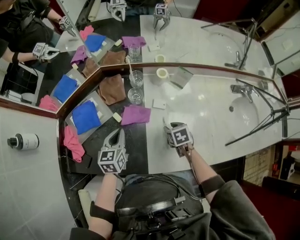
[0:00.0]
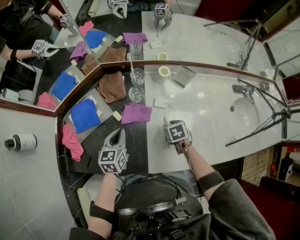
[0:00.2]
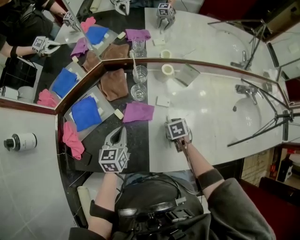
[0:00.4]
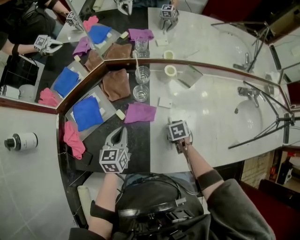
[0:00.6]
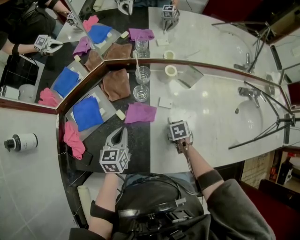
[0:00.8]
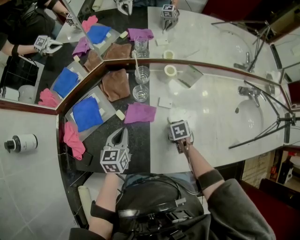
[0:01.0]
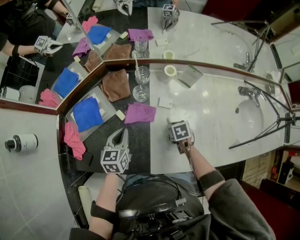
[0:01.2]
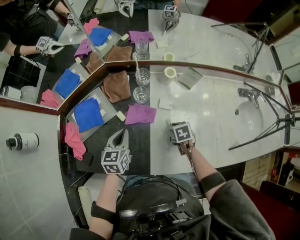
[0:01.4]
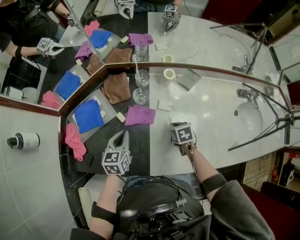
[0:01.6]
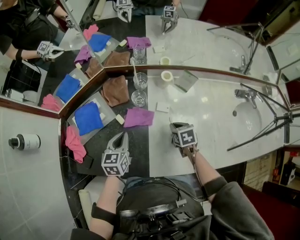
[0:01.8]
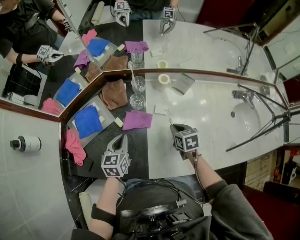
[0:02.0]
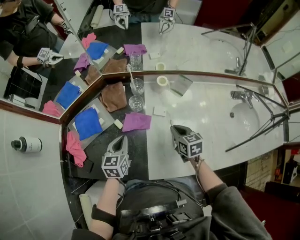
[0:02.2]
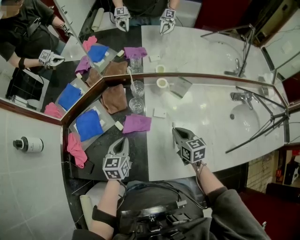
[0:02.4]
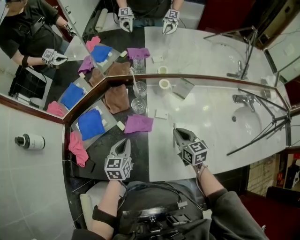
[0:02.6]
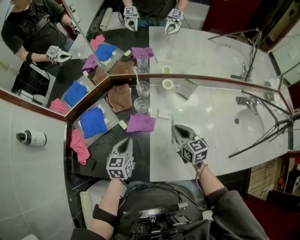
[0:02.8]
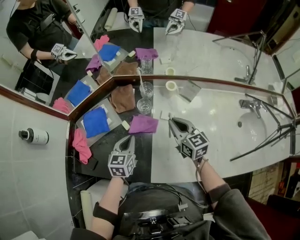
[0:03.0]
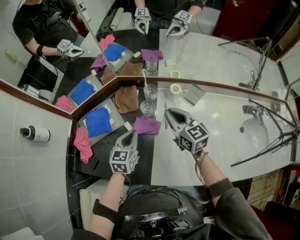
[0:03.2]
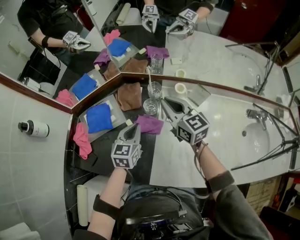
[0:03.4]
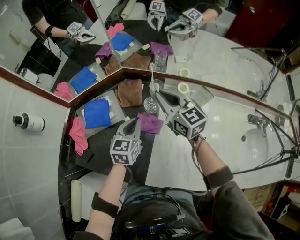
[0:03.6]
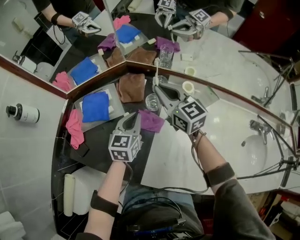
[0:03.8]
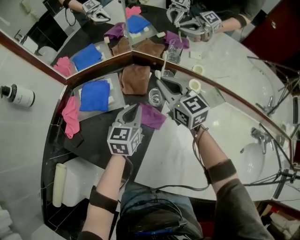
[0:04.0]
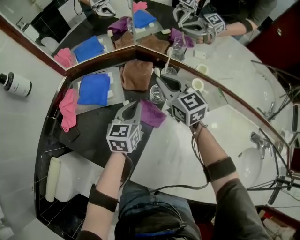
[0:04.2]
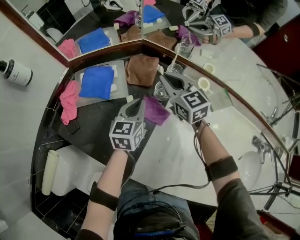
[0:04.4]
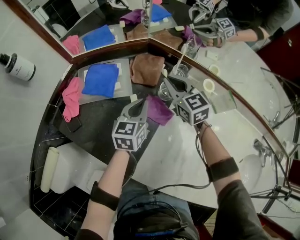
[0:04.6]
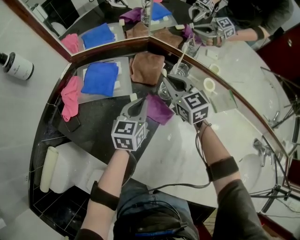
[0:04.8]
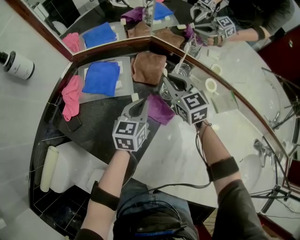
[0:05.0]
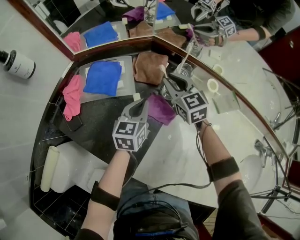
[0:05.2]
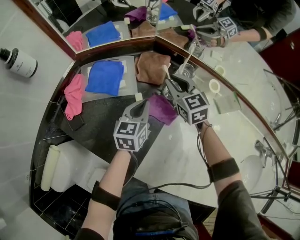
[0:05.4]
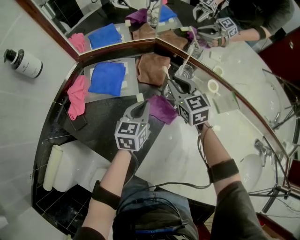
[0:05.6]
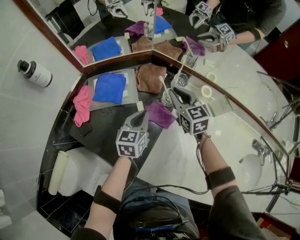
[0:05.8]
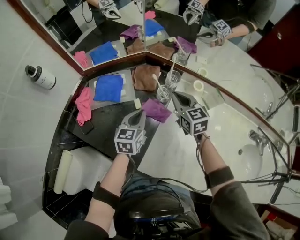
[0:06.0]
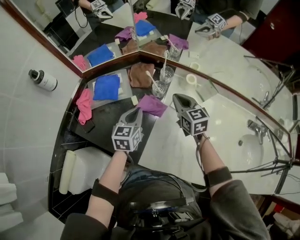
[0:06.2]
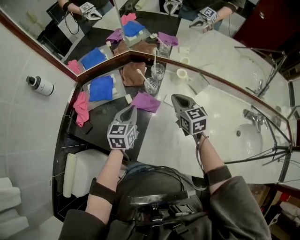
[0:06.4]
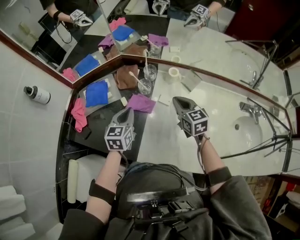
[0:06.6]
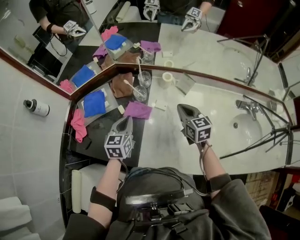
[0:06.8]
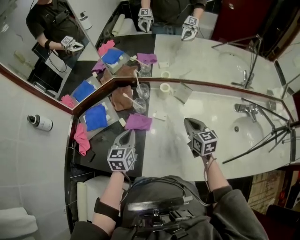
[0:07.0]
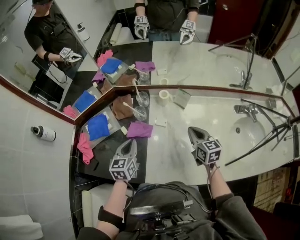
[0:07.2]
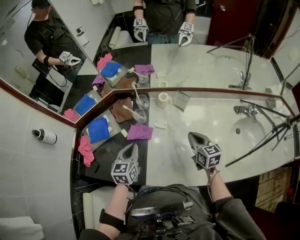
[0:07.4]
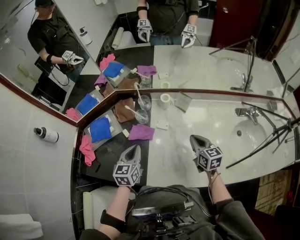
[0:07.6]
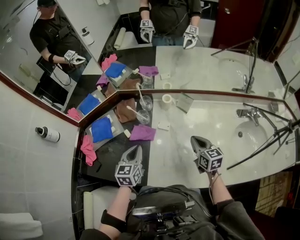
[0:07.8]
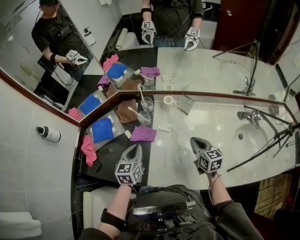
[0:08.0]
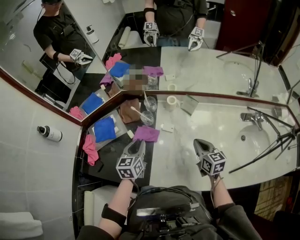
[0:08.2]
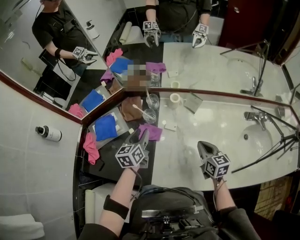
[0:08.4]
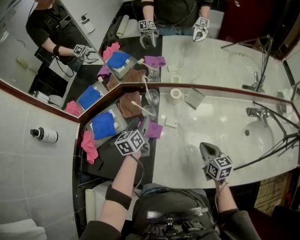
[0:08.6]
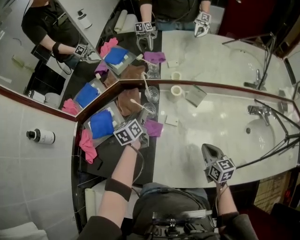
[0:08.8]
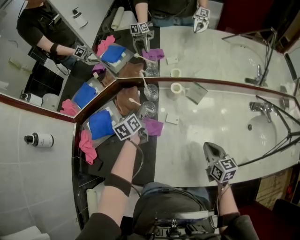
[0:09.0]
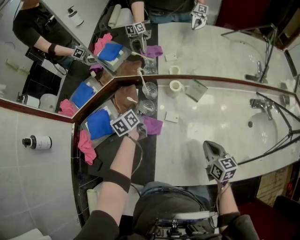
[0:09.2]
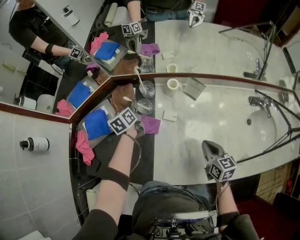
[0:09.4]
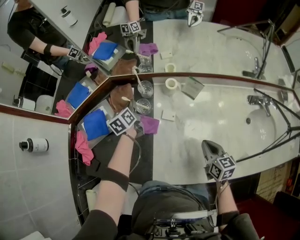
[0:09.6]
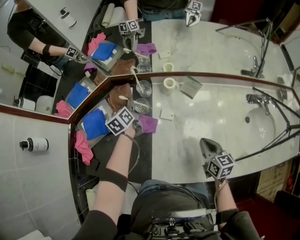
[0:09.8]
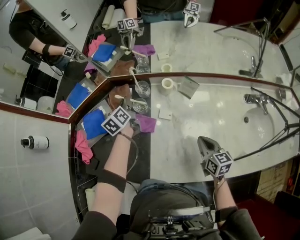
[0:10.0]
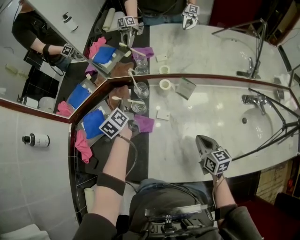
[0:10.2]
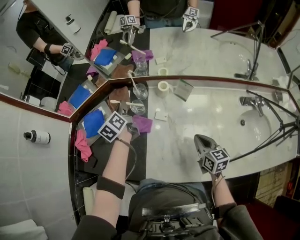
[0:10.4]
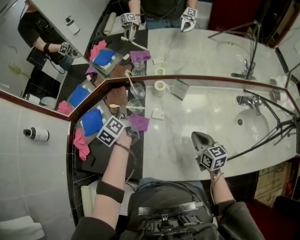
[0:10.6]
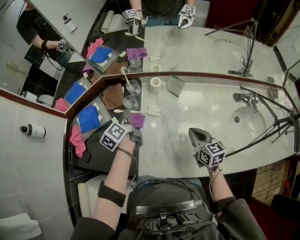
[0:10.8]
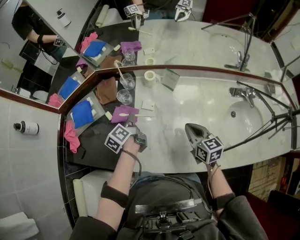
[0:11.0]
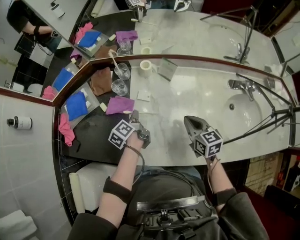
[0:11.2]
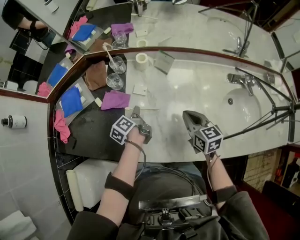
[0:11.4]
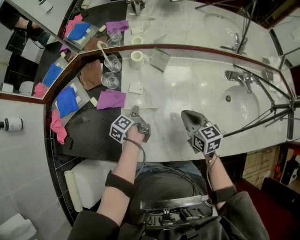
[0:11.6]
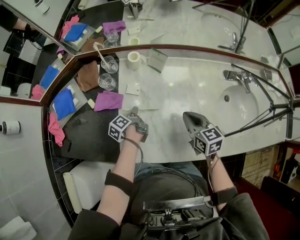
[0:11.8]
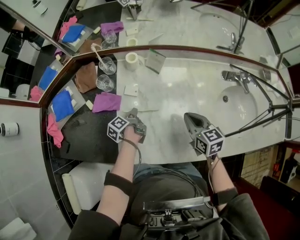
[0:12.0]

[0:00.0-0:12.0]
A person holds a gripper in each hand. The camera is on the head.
0:00.0 to 0:01.6: The right gripper closes up.
0:01.6 to 0:03.0: The right gripper travels upward by some 20 cm, and tips its fingers upward by about 50 degrees.
0:03.0 to 0:04.4: The right gripper shifts approximately 20 cm forward and to the left, and rotates approximately 30 degrees; the left gripper goes approximately 10 cm forward, and changes its angle by approximately 20 degrees.
0:04.4 to 0:06.0: The grippers both shift backward by some 5 cm.
0:06.0 to 0:07.6: The left gripper moves backward, upward and to the right, roughly 10 cm, while the right gripper goes approximately 30 cm to the right and backward, and changes its angle by approximately 30 degrees.
0:07.6 to 0:09.0: The left gripper is displaced forward and downward by approximately 25 cm, swivels approximately 30 degrees, and opens.
0:09.0 to 0:10.4: The left gripper heads upward, covering some 10 cm, and closes.
0:10.4 to 0:12.0: The left gripper goes about 30 cm downward, backward and to the right, and twists about 40 degrees counterclockwise, seen from behind. The right gripper heads to the right, covering roughly 5 cm.

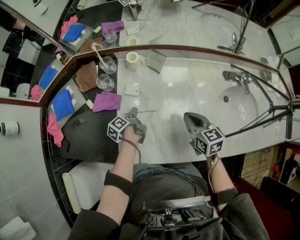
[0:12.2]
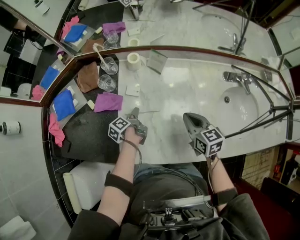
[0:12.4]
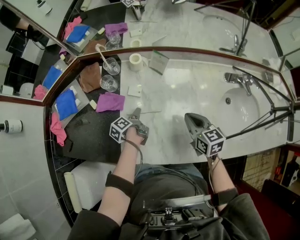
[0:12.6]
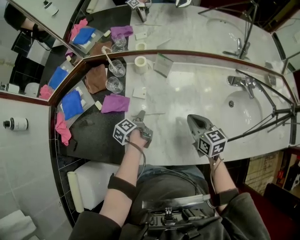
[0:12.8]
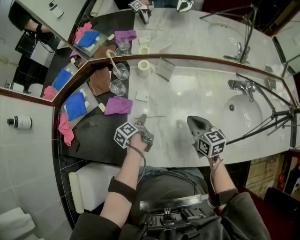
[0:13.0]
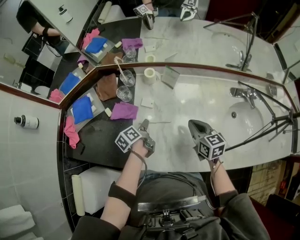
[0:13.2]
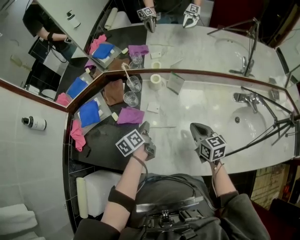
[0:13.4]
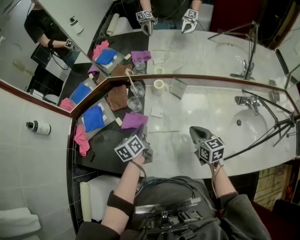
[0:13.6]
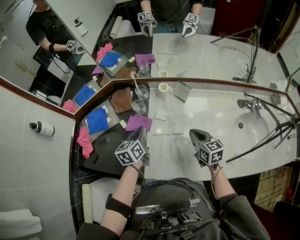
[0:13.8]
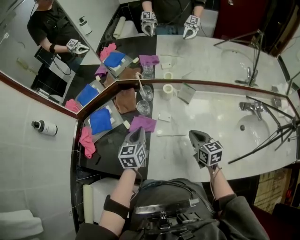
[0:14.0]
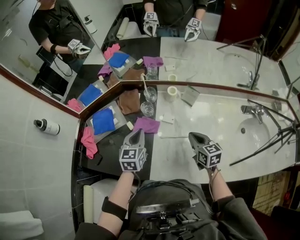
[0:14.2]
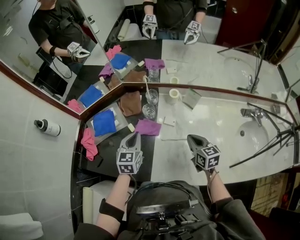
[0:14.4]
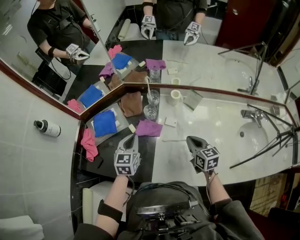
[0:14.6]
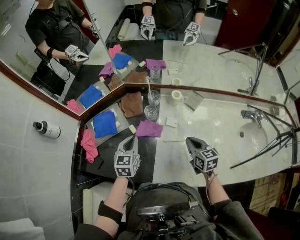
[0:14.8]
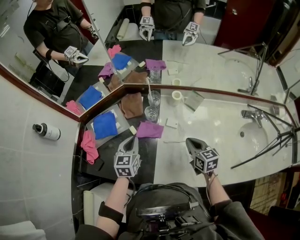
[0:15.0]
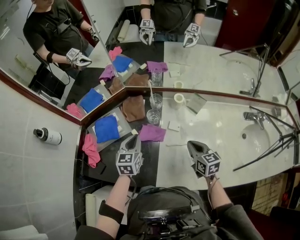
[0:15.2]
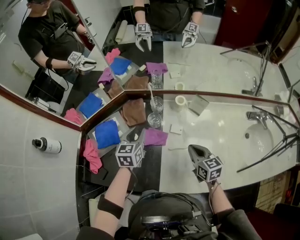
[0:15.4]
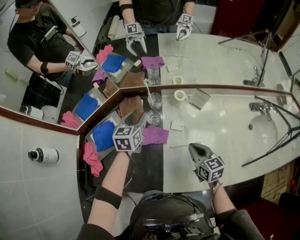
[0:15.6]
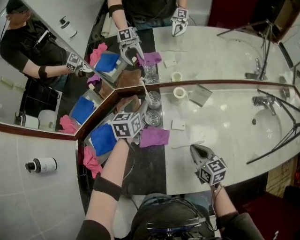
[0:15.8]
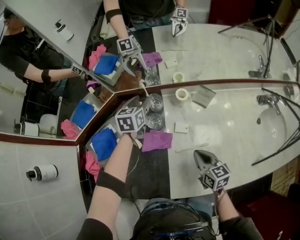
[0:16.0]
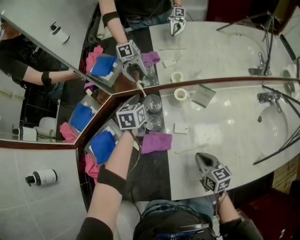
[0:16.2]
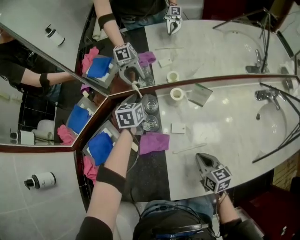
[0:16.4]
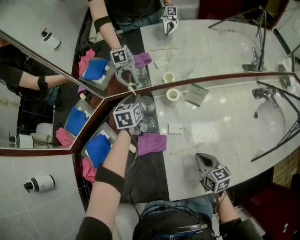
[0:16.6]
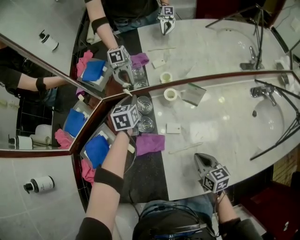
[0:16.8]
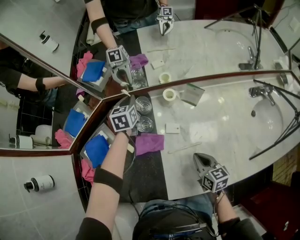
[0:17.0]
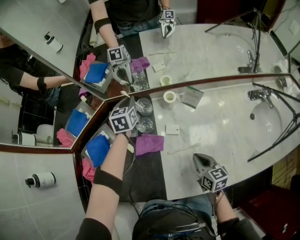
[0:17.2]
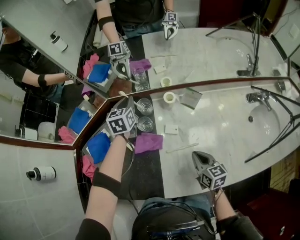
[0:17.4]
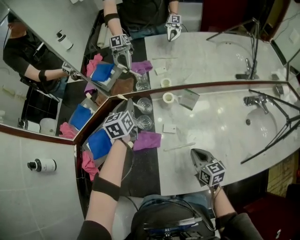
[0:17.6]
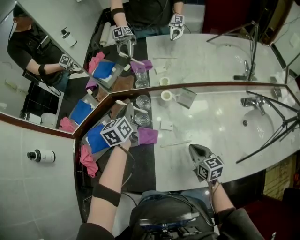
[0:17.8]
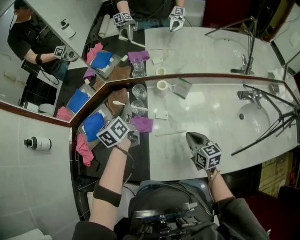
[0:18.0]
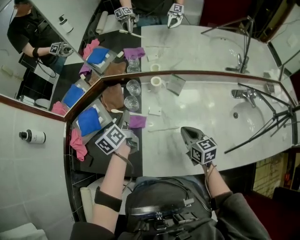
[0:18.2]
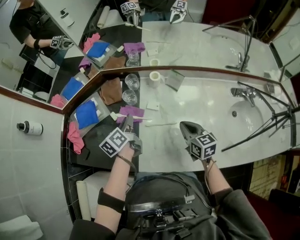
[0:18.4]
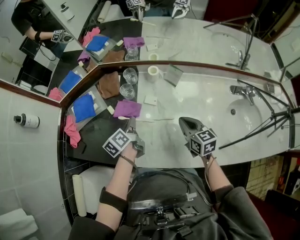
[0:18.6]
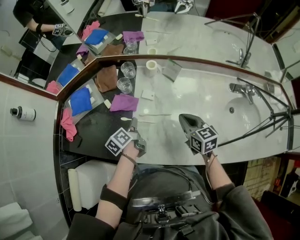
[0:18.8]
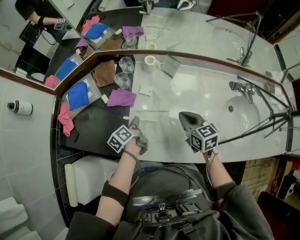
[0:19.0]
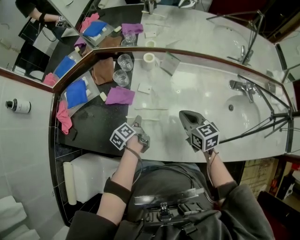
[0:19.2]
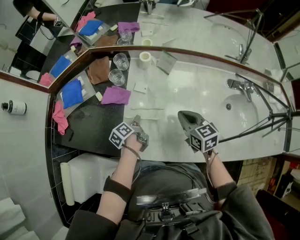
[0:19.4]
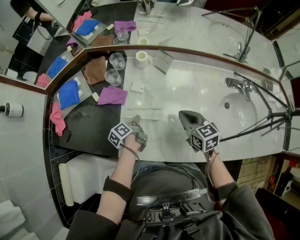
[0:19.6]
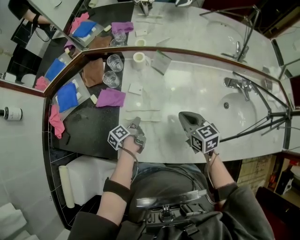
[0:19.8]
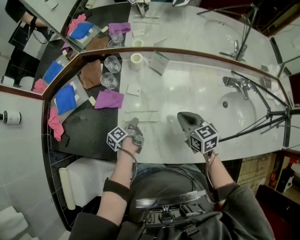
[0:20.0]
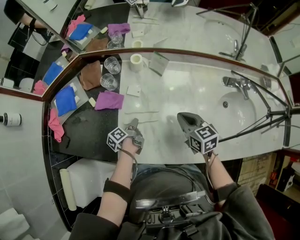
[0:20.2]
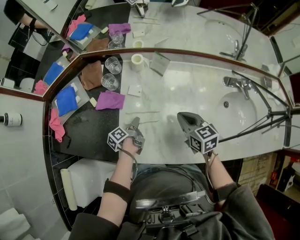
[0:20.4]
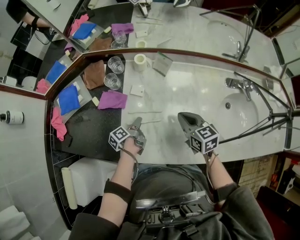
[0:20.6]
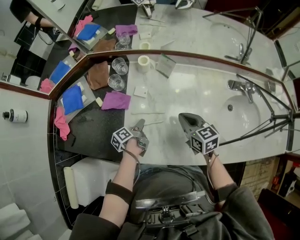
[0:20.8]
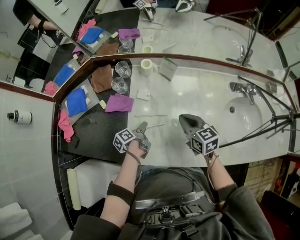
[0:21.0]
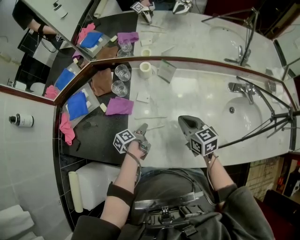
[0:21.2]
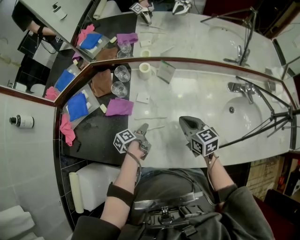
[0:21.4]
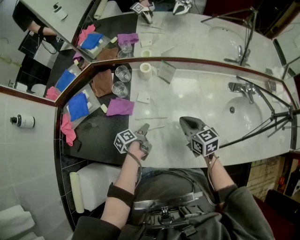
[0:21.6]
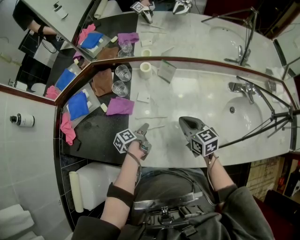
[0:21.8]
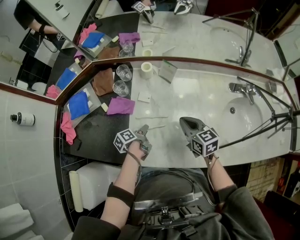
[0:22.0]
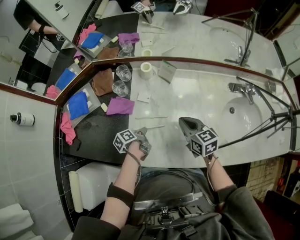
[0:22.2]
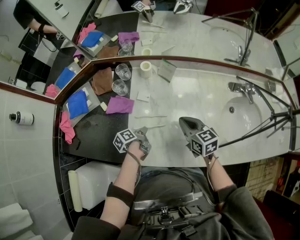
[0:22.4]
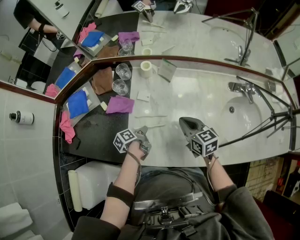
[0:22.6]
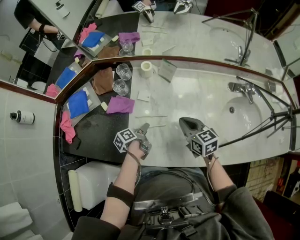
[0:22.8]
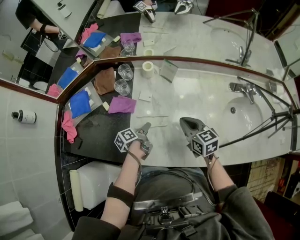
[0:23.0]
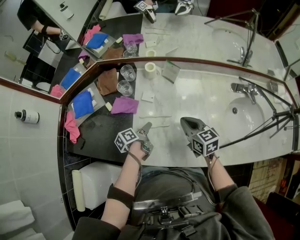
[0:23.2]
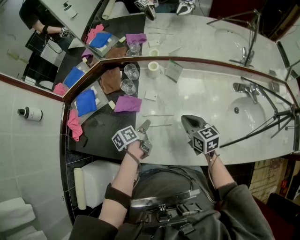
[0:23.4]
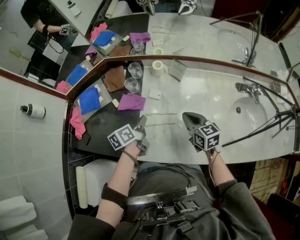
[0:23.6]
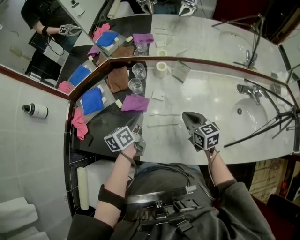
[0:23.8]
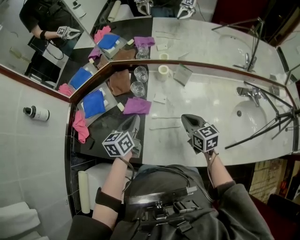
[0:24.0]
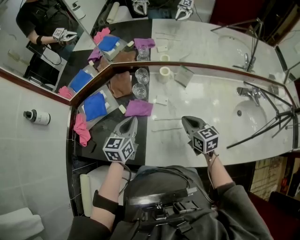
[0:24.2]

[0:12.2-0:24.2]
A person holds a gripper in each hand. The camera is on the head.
0:12.2 to 0:13.8: The left gripper goes about 20 cm upward, twists some 50 degrees clockwise, seen from behind, and closes its fingers. The right gripper goes roughly 10 cm to the left.
0:13.8 to 0:15.2: Both grippers move to the left, some 10 cm. The left gripper turns by approximately 20 degrees.
0:15.2 to 0:16.6: The right gripper is displaced downward by some 10 cm. The left gripper goes roughly 25 cm forward, and opens, then closes once more.
0:16.6 to 0:18.2: The left gripper shifts approximately 25 cm backward and upward, and turns by approximately 40 degrees. The right gripper is displaced upward and to the right by approximately 10 cm.
0:18.2 to 0:19.8: The right gripper is displaced to the right by roughly 10 cm, while the left gripper moves downward, backward and to the right, about 30 cm, and turns by some 40 degrees.
0:19.8 to 0:21.2: The left gripper opens its fingers.
0:21.2 to 0:22.6: The left gripper closes.
0:22.6 to 0:24.2: The right gripper shifts about 10 cm to the left; the left gripper is displaced upward and to the left by roughly 25 cm, rotates around the line of its fingers by about 70 degrees, clockwise from behind, and opens, then closes again.
